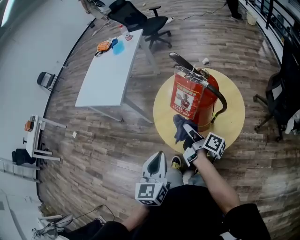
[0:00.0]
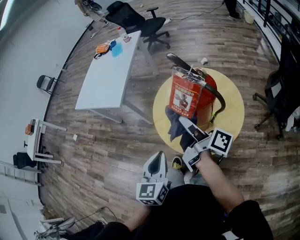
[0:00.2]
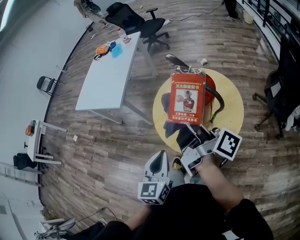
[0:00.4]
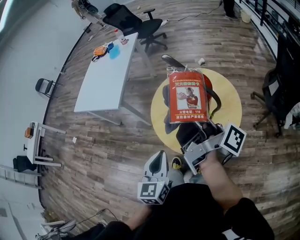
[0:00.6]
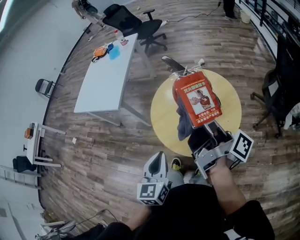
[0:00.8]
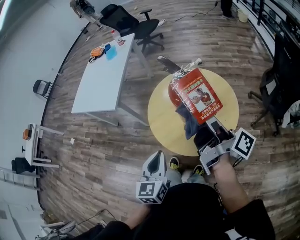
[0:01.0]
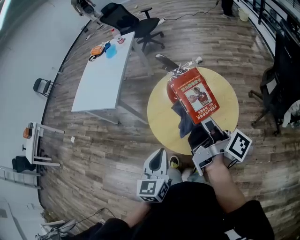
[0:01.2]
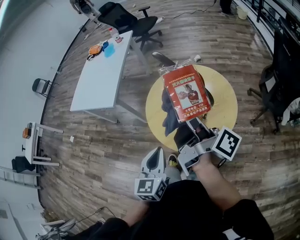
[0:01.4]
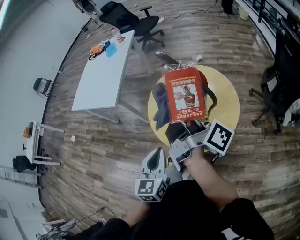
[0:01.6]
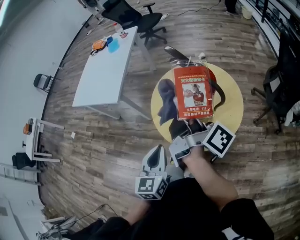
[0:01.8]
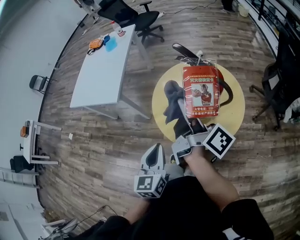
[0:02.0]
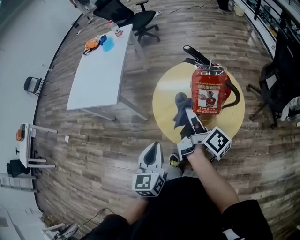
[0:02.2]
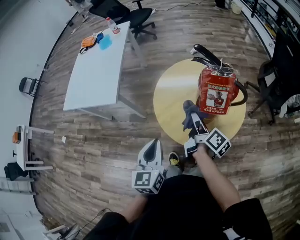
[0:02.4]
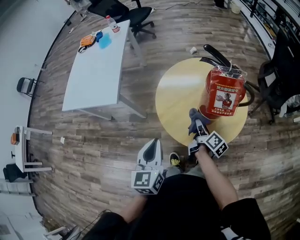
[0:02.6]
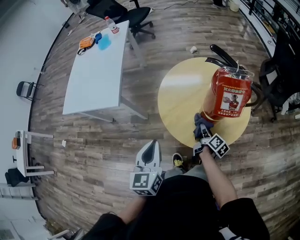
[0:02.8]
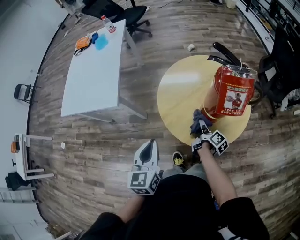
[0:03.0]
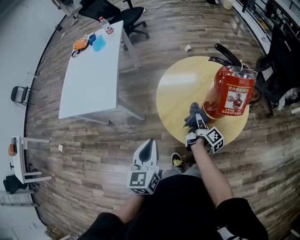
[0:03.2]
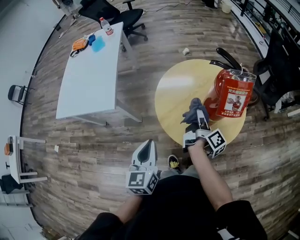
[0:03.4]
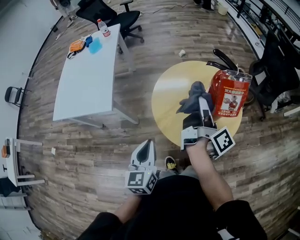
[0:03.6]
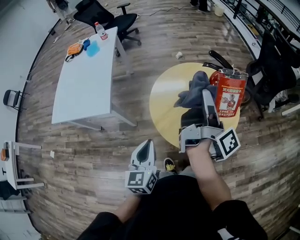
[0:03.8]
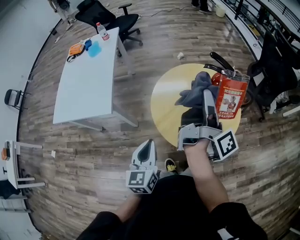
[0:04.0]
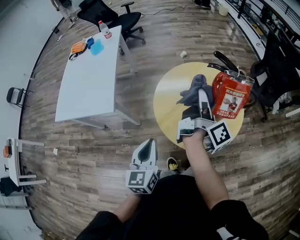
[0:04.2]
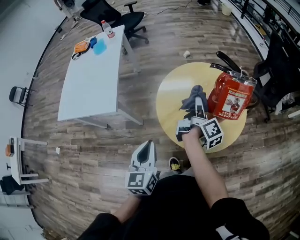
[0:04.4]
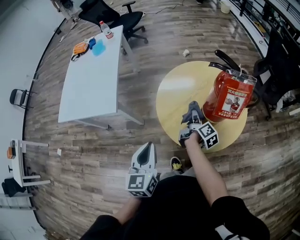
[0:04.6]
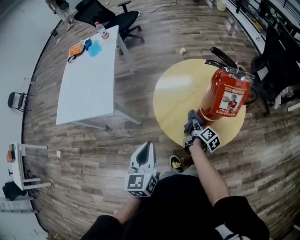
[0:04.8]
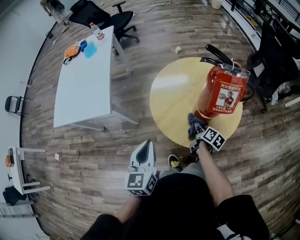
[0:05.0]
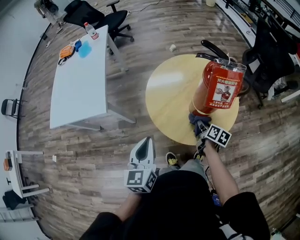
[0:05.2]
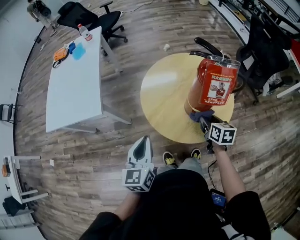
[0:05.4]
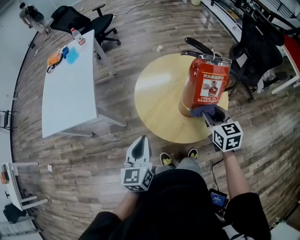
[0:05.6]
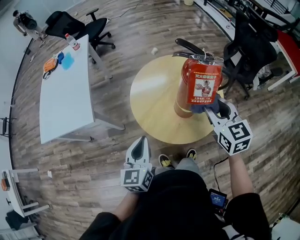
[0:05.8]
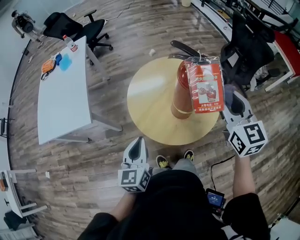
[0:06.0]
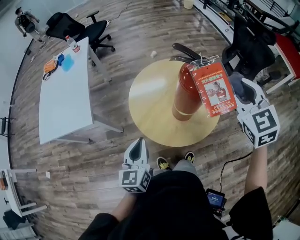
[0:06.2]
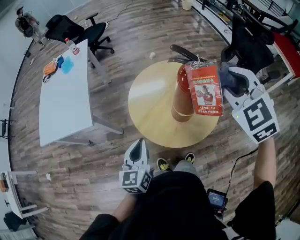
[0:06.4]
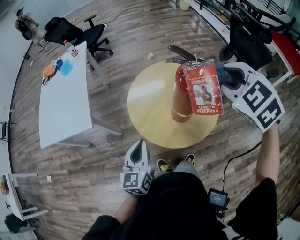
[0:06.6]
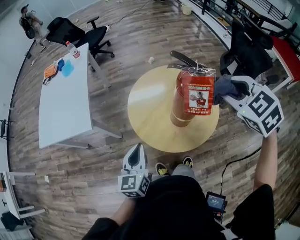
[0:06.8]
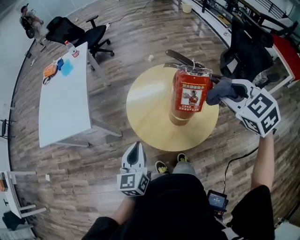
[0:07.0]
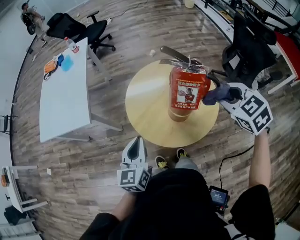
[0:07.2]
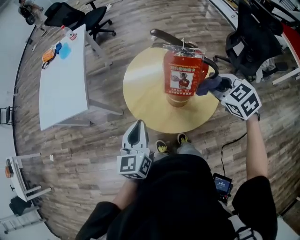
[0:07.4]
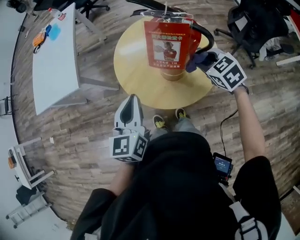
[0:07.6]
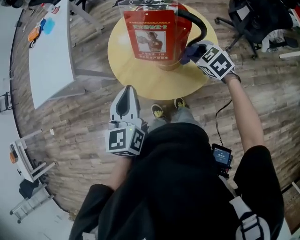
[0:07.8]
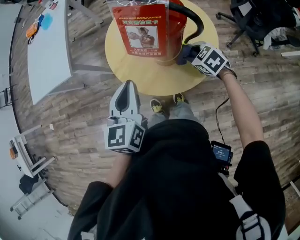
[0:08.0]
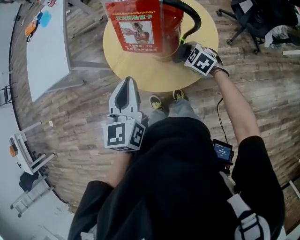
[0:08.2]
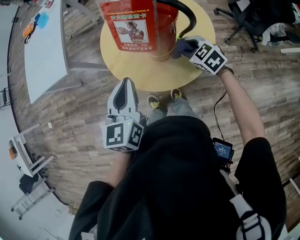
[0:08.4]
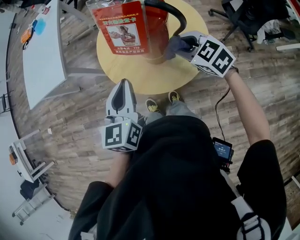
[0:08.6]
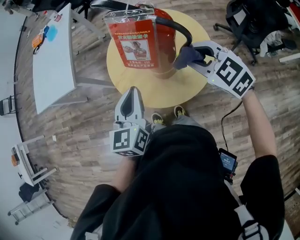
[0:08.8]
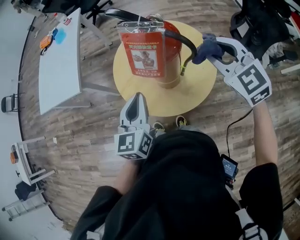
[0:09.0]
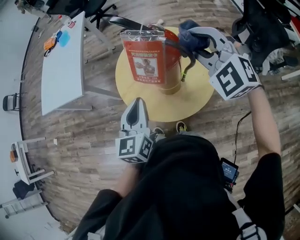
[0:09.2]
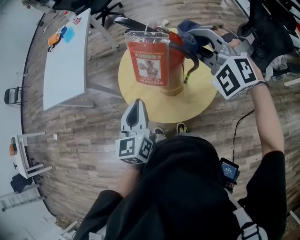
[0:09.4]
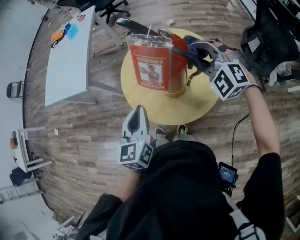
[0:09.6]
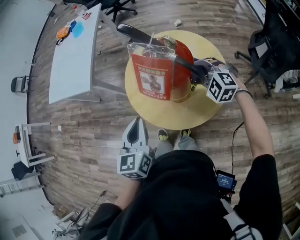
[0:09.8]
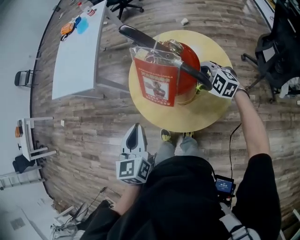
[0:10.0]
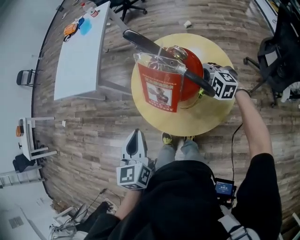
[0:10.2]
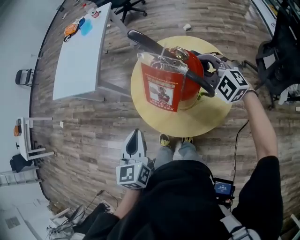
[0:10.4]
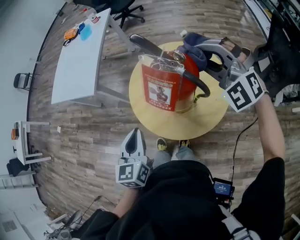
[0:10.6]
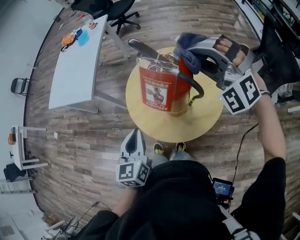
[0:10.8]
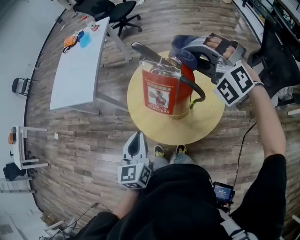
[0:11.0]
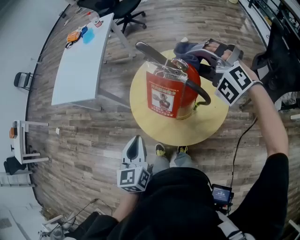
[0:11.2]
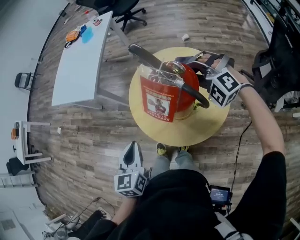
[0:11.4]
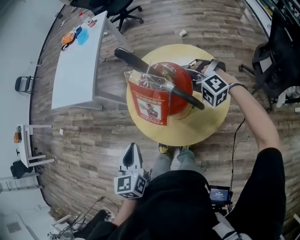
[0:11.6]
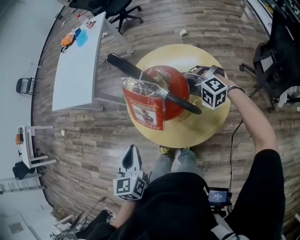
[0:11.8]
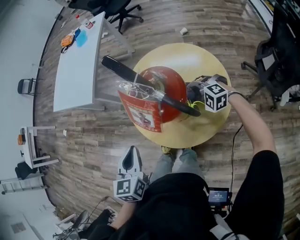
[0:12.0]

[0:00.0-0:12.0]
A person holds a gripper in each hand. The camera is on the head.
0:00.0 to 0:01.6: The right gripper moves upward, about 20 cm, and swivels some 20 degrees.
0:01.6 to 0:03.0: The right gripper goes roughly 35 cm downward, and angles its fingers downward, by some 40 degrees. Meanwhile the left gripper goes roughly 20 cm to the left and forward.
0:03.0 to 0:04.4: The right gripper heads upward, covering about 20 cm, and turns by approximately 20 degrees.
0:04.4 to 0:06.0: The left gripper shifts about 5 cm to the right, while the right gripper moves upward, to the right and backward, approximately 25 cm, and twists about 90 degrees counterclockwise, seen from behind.
0:06.0 to 0:07.6: The right gripper heads downward, covering roughly 20 cm, and angles its fingers downward, by about 30 degrees. The left gripper travels to the right by roughly 10 cm.
0:07.6 to 0:09.0: The right gripper is displaced upward by about 15 cm, and rotates approximately 30 degrees, while the left gripper shifts roughly 5 cm to the right.
0:09.0 to 0:10.4: The left gripper shifts by about 5 cm, and turns by about 20 degrees. The right gripper swings up and down, about 25 cm each way, with 2 reversals, and changes its angle by approximately 40 degrees.
0:10.4 to 0:12.0: The right gripper goes approximately 15 cm downward, and turns by roughly 30 degrees.

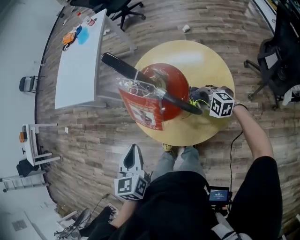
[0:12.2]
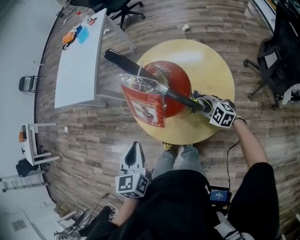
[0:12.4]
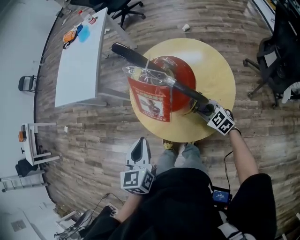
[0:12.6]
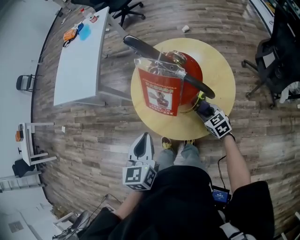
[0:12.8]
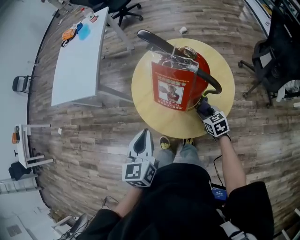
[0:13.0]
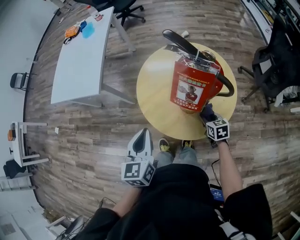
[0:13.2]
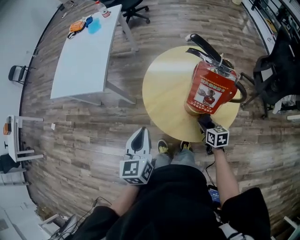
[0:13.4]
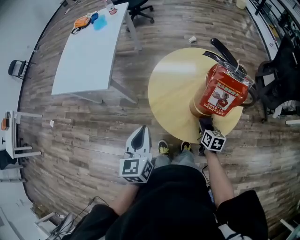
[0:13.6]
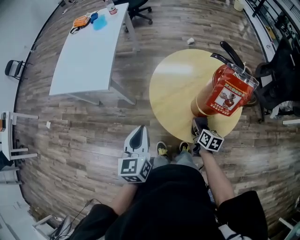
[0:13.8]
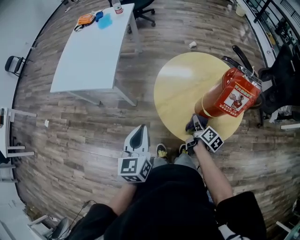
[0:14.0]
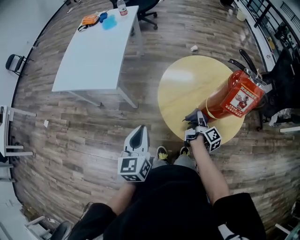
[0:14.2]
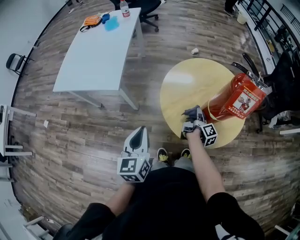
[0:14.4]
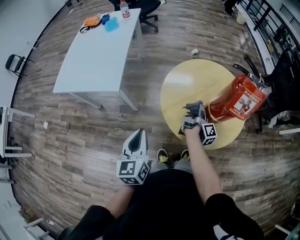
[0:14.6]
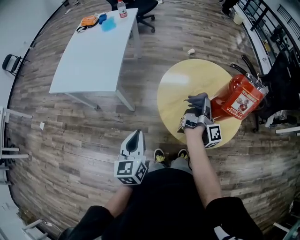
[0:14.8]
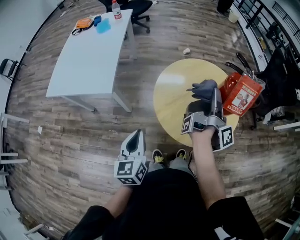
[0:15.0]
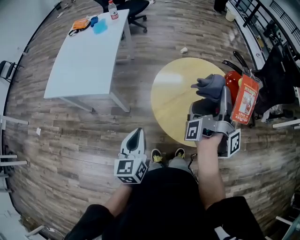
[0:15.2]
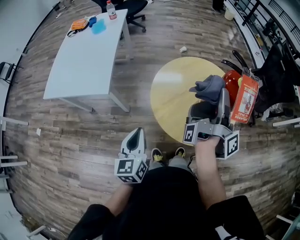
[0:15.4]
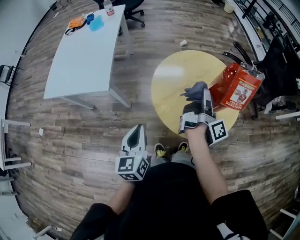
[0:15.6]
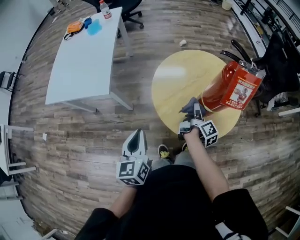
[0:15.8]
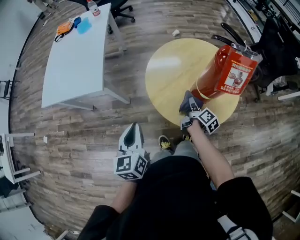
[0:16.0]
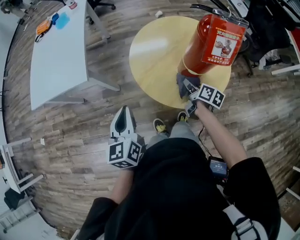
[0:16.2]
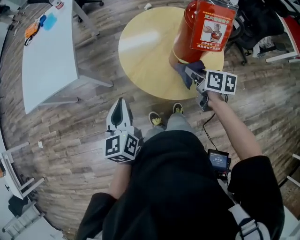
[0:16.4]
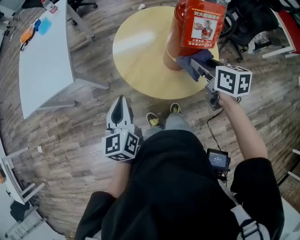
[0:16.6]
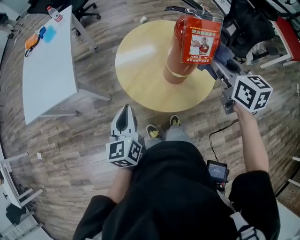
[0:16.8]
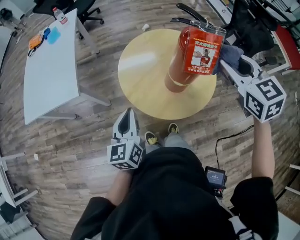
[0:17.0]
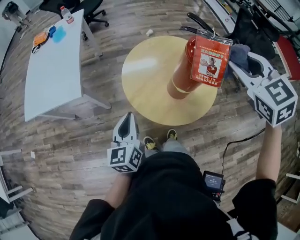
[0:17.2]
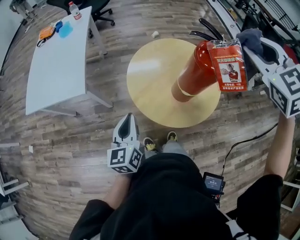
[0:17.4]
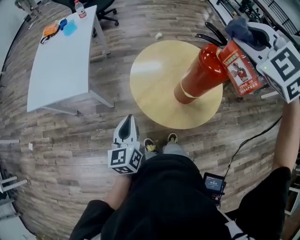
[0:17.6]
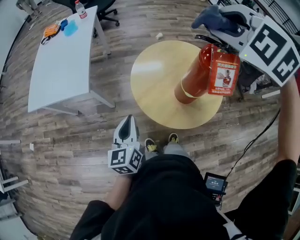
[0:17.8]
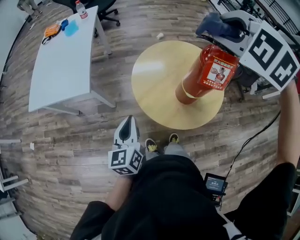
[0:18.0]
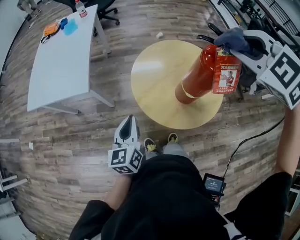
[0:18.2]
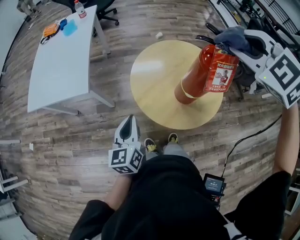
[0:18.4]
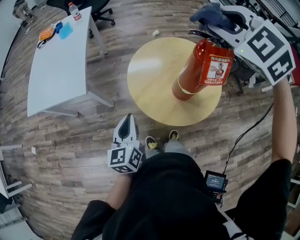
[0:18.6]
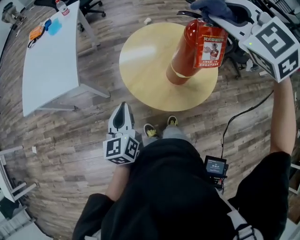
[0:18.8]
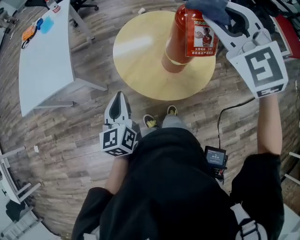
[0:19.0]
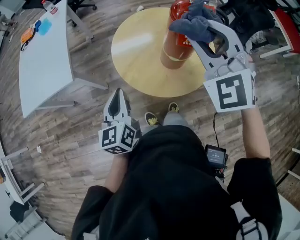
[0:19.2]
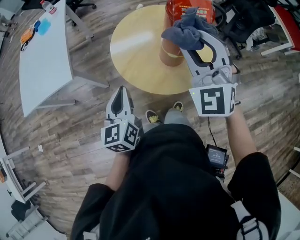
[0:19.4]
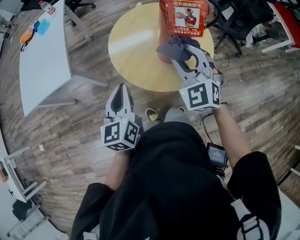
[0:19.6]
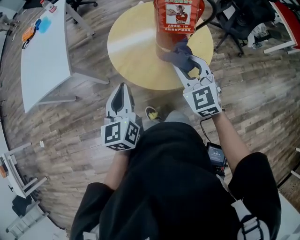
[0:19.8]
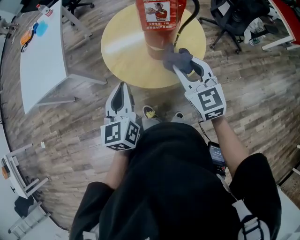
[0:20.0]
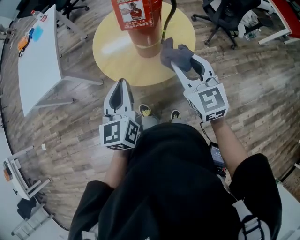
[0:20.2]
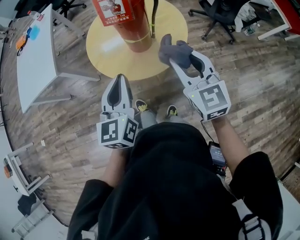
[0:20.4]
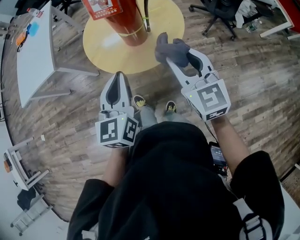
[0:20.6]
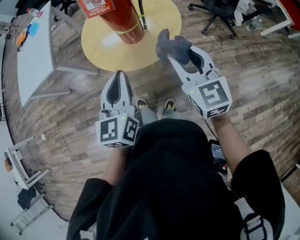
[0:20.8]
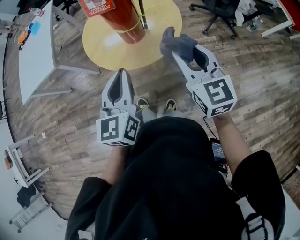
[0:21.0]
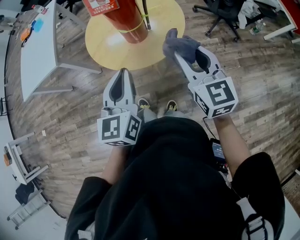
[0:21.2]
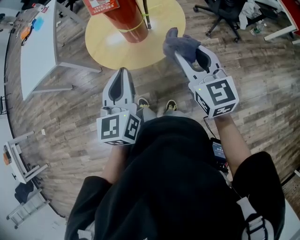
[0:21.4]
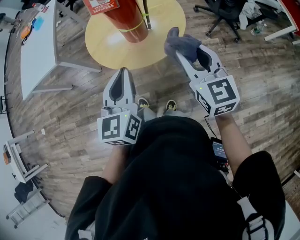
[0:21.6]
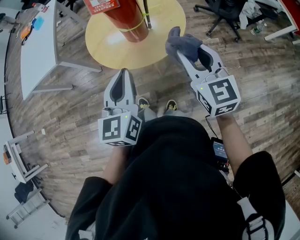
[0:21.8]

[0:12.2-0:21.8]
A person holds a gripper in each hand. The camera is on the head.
0:12.2 to 0:13.8: The left gripper shifts by approximately 15 cm, while the right gripper changes place by about 15 cm, and rotates around the line of its fingers by about 90 degrees, clockwise from behind.
0:13.8 to 0:15.4: The left gripper shifts approximately 5 cm to the left; the right gripper goes about 35 cm upward, and tips its fingers upward by some 50 degrees.
0:15.4 to 0:17.0: Both grippers move to the right, approximately 10 cm. The right gripper moves approximately 35 cm downward and comes back, and rolls counterclockwise, seen from behind, by about 110 degrees.
0:17.0 to 0:18.6: The right gripper heads to the left, upward and forward, covering approximately 20 cm, and twists approximately 40 degrees counterclockwise, seen from behind.
0:18.6 to 0:20.2: The left gripper moves to the right, some 20 cm; the right gripper is displaced backward, downward and to the right by roughly 35 cm, and rolls clockwise, seen from behind, by some 50 degrees.
0:20.2 to 0:21.8: Both grippers move to the right and backward, roughly 10 cm.

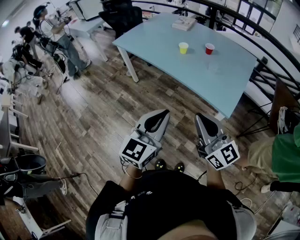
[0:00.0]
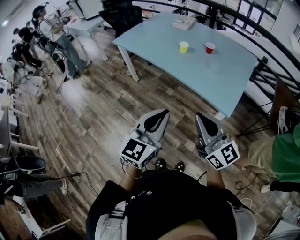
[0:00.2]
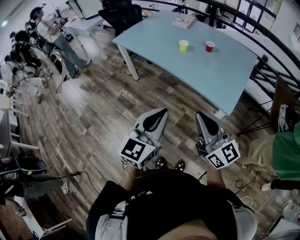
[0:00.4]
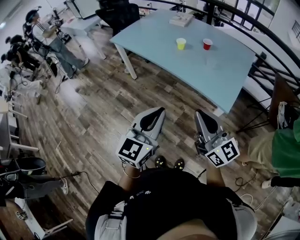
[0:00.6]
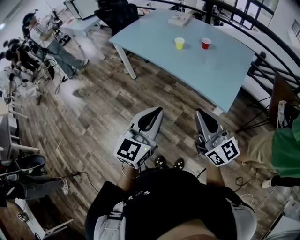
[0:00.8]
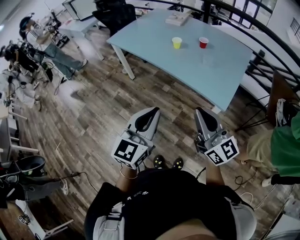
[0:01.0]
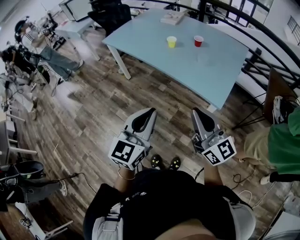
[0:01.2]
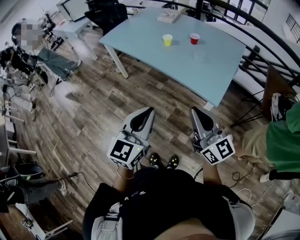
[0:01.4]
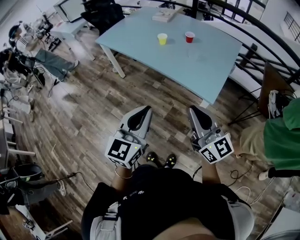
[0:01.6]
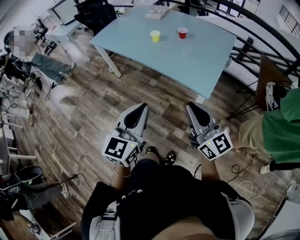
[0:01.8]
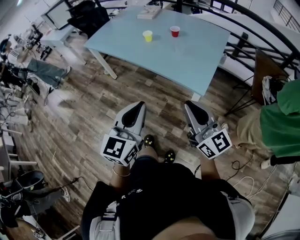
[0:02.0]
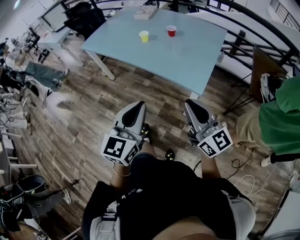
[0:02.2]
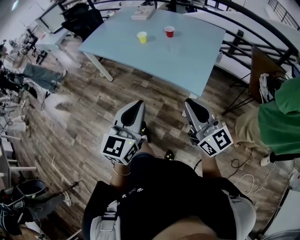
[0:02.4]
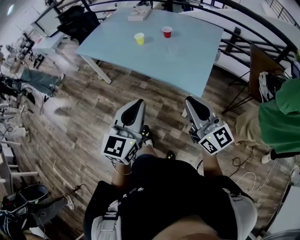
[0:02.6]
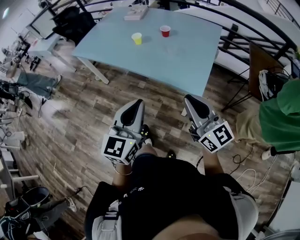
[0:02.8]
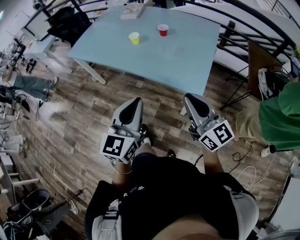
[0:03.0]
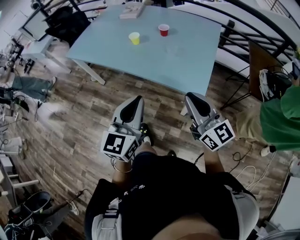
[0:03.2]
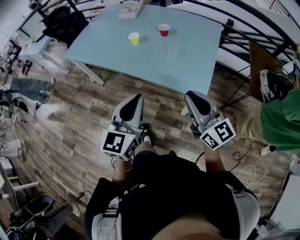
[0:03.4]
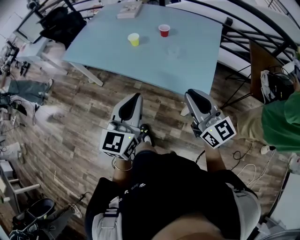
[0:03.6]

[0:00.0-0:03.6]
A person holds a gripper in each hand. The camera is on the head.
0:00.0 to 0:01.8: The right gripper travels to the right by about 10 cm. Meanwhile the left gripper travels to the right by roughly 5 cm.
0:01.8 to 0:03.6: Both grippers move forward, some 15 cm.
